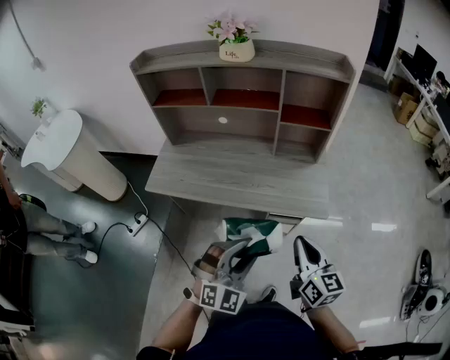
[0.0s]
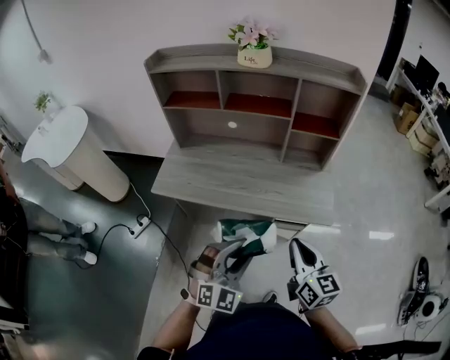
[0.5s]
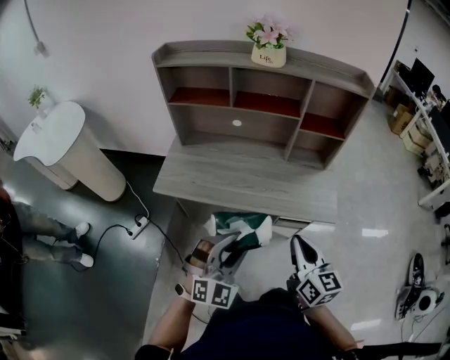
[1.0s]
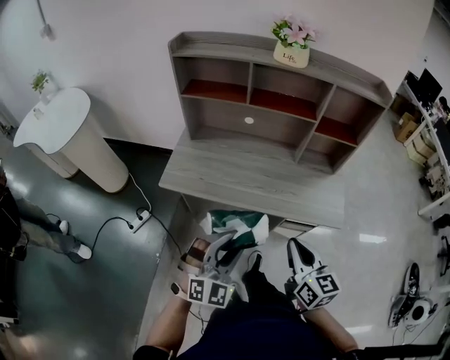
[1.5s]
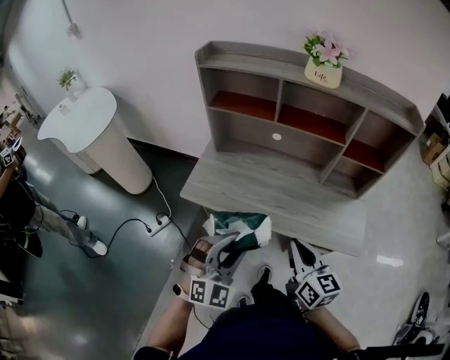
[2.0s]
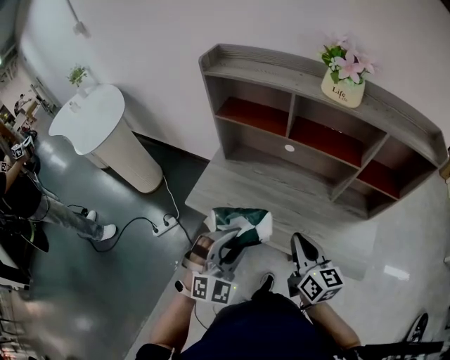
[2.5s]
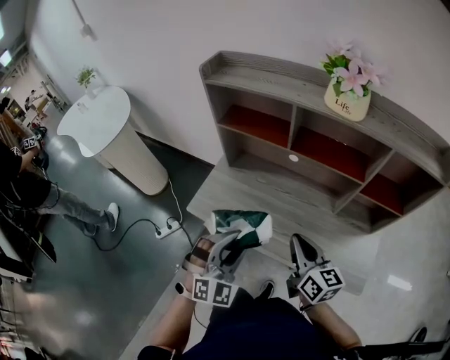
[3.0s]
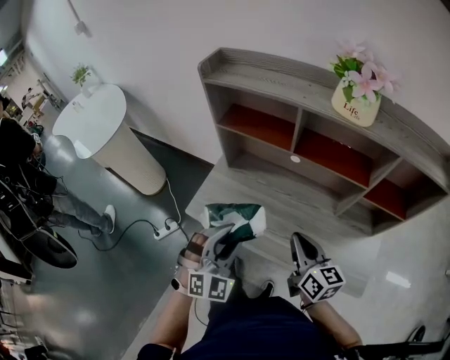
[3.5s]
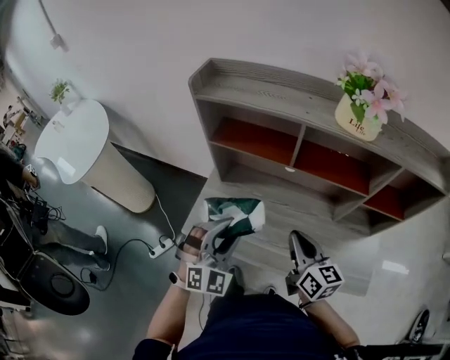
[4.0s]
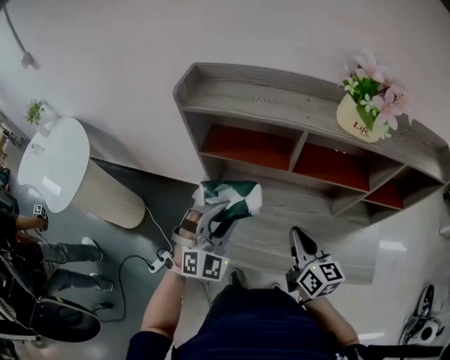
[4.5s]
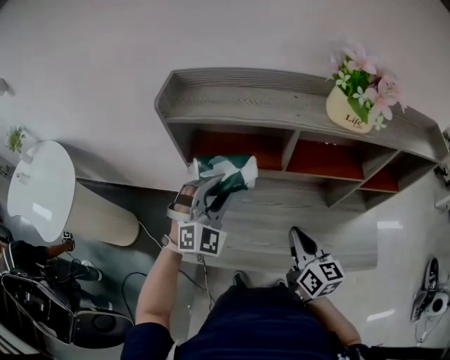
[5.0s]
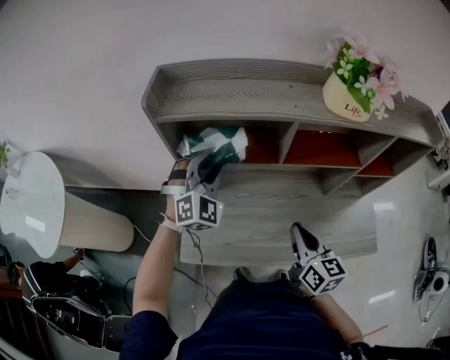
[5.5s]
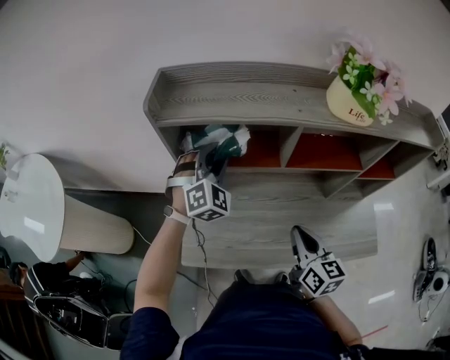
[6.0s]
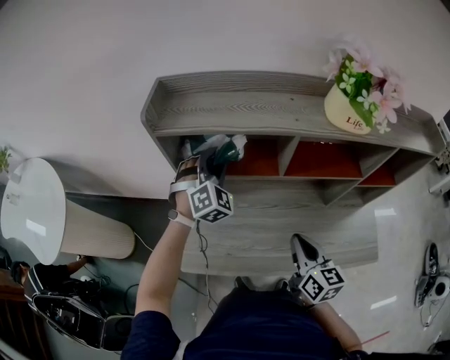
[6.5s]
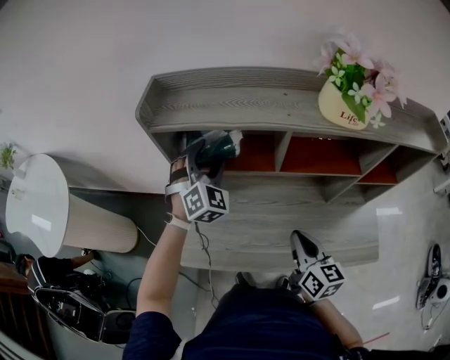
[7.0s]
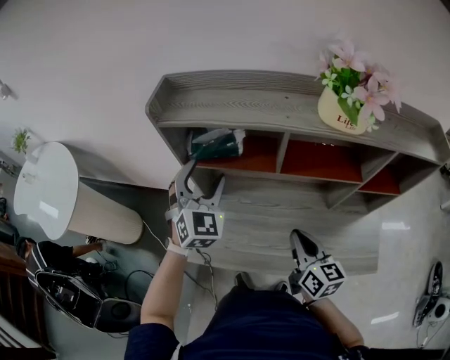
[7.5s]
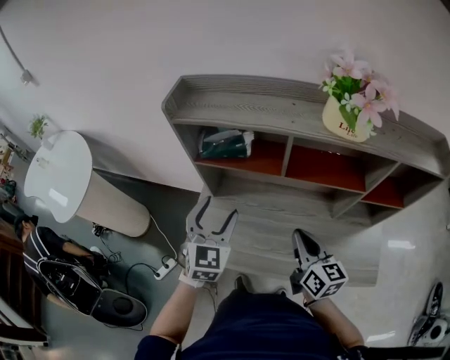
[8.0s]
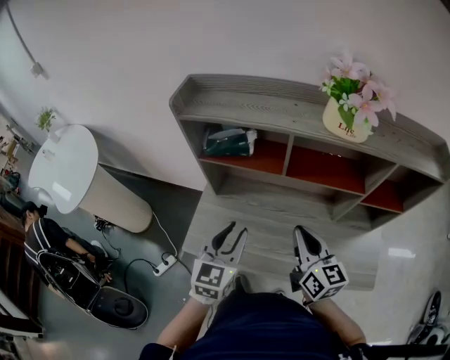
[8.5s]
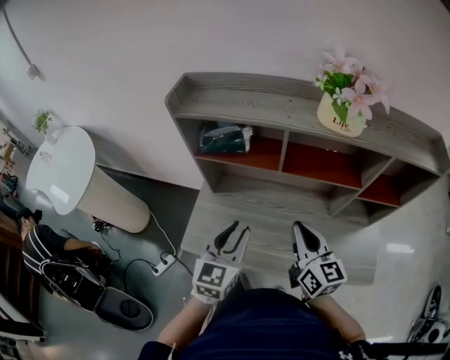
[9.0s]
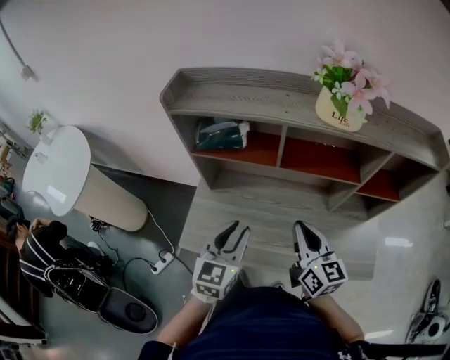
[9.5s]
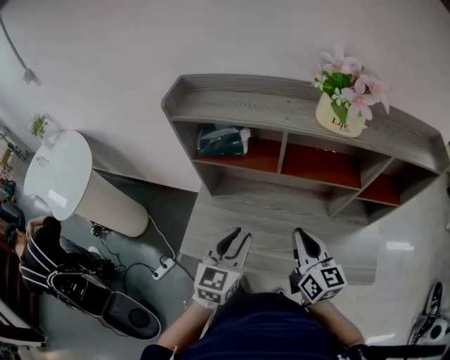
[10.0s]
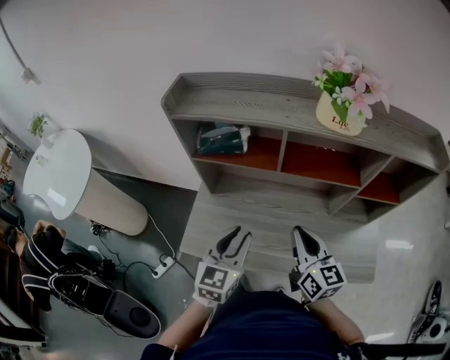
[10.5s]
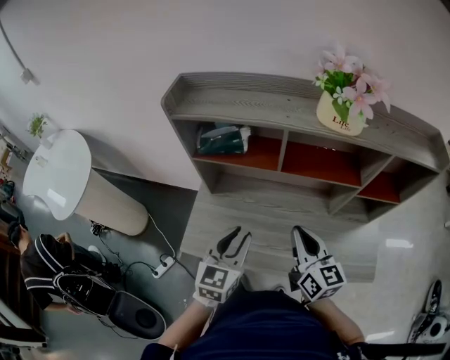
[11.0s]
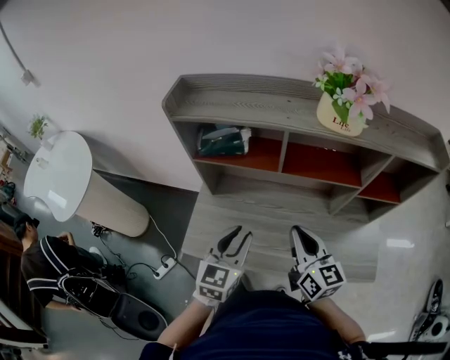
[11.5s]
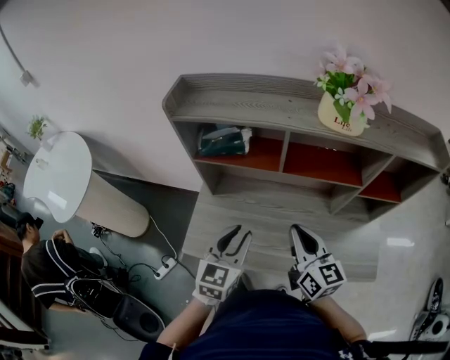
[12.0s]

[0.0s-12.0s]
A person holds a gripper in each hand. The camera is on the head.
0.0s to 2.0s: The right gripper shifts about 25 cm to the left and forward, while the left gripper heads to the left, covering approximately 25 cm.
2.0s to 4.0s: The grippers both shift forward by approximately 25 cm.
4.0s to 6.0s: The right gripper ends up approximately 5 cm from where it was, and rotates approximately 20 degrees; the left gripper travels forward by roughly 30 cm.
6.0s to 8.0s: The left gripper goes approximately 15 cm backward, twists roughly 40 degrees counterclockwise, seen from behind, and opens up.
8.0s to 10.0s: The left gripper shifts approximately 10 cm backward and to the right, turns by approximately 20 degrees, and closes its fingers.
10.0s to 12.0s: The grippers move only a little.

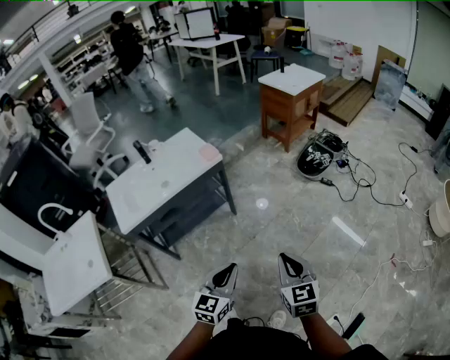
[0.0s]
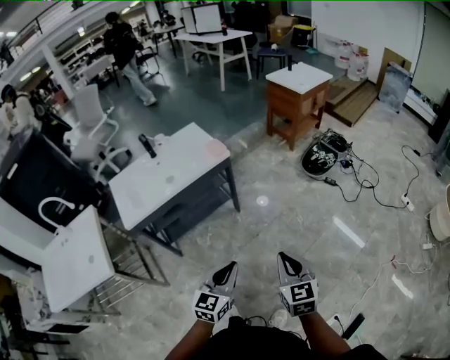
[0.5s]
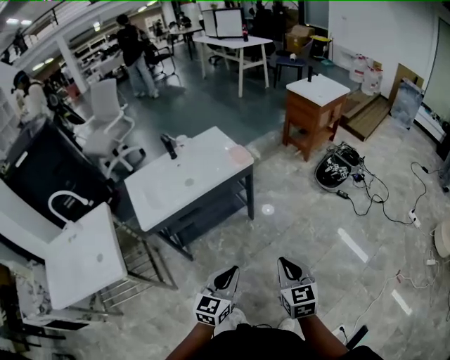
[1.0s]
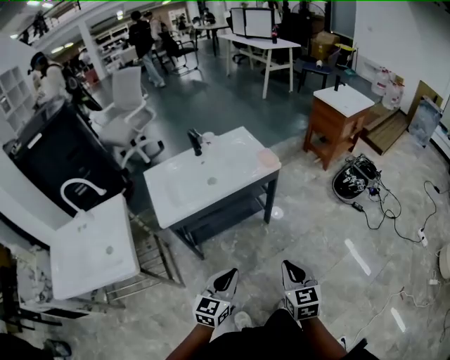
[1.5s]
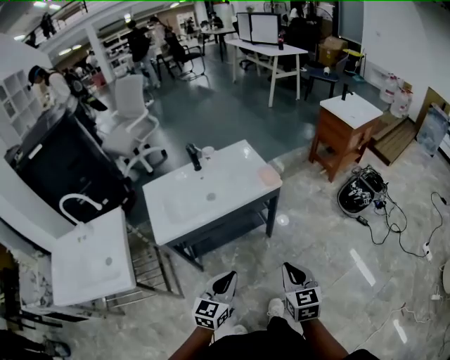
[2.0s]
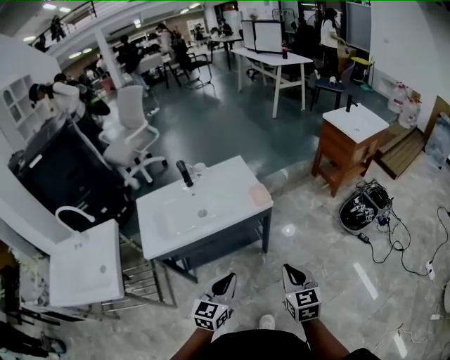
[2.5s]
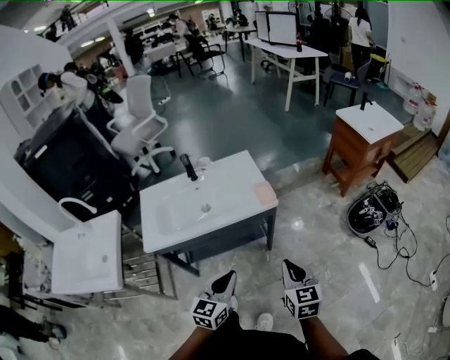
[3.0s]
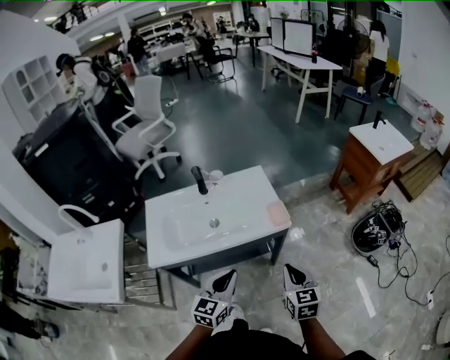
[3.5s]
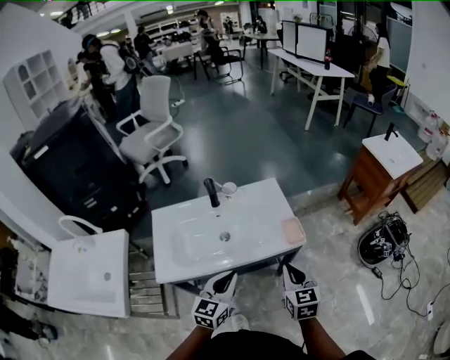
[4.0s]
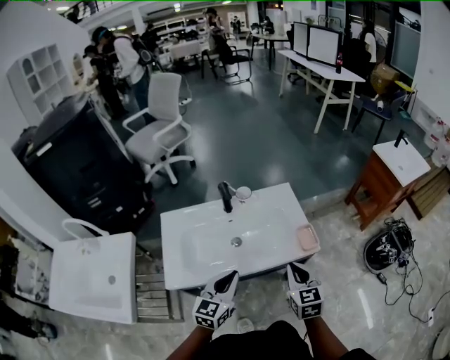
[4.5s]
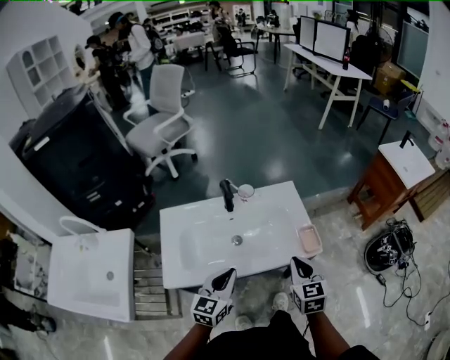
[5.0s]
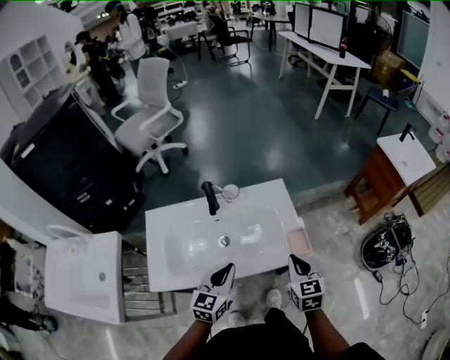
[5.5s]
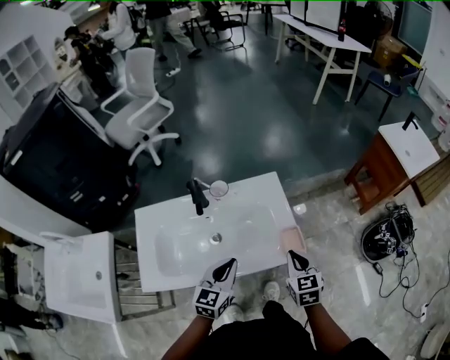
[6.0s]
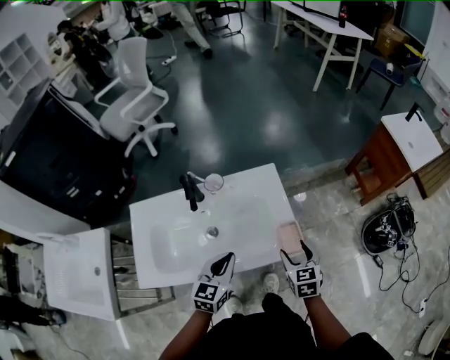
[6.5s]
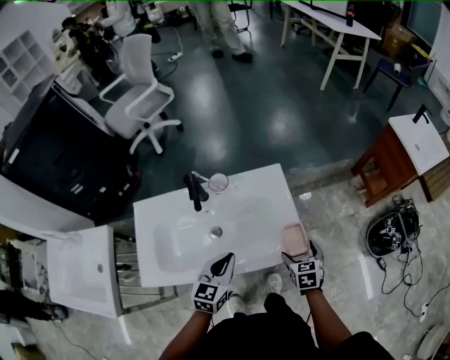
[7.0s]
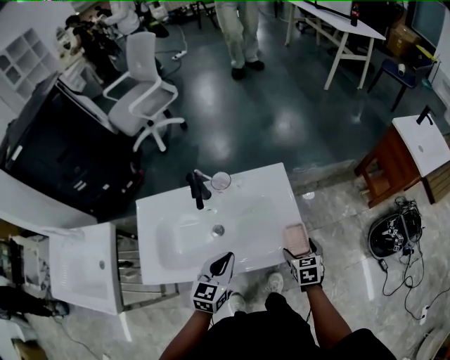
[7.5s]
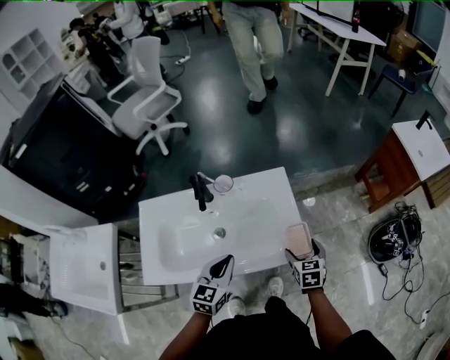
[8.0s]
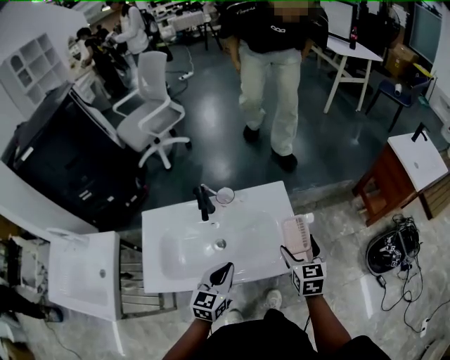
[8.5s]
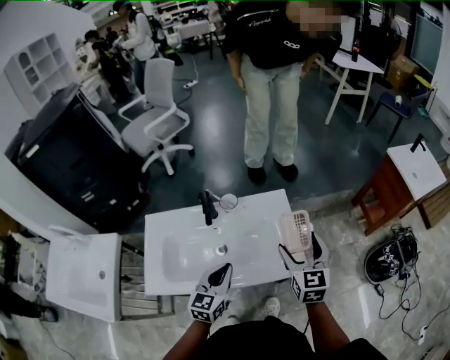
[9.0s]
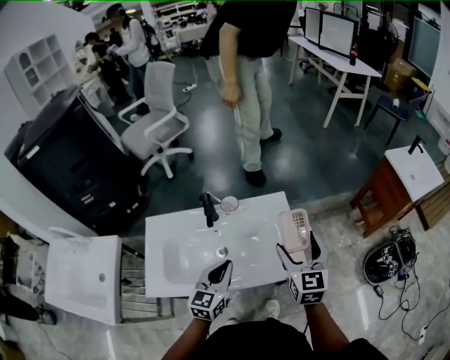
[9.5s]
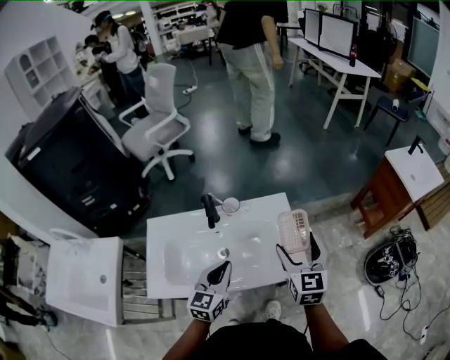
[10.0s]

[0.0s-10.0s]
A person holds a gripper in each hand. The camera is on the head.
0.0s to 2.0s: Both grippers travel together to the left and forward, some 25 cm.
2.0s to 4.0s: The two grippers go roughly 25 cm forward.
4.0s to 6.0s: The left gripper travels forward by about 10 cm. Meanwhile the right gripper shifts approximately 15 cm forward and downward.
6.0s to 8.0s: The right gripper shifts roughly 10 cm downward, and opens.
8.0s to 10.0s: The left gripper is displaced upward by approximately 5 cm. Meanwhile the right gripper goes about 20 cm upward, and tilts its fingers roughly 30 degrees upward.

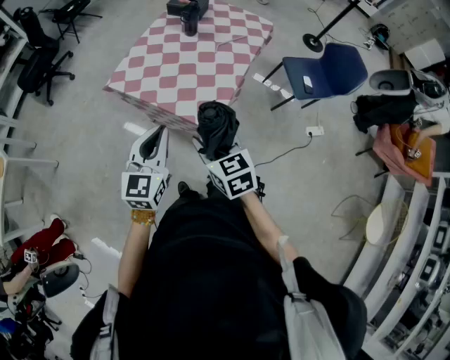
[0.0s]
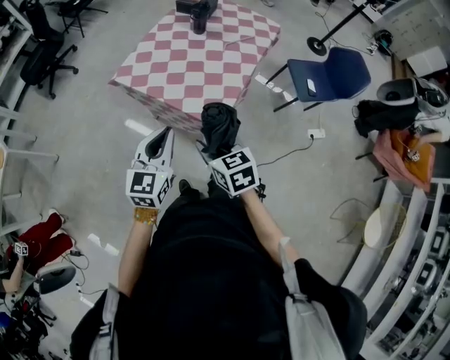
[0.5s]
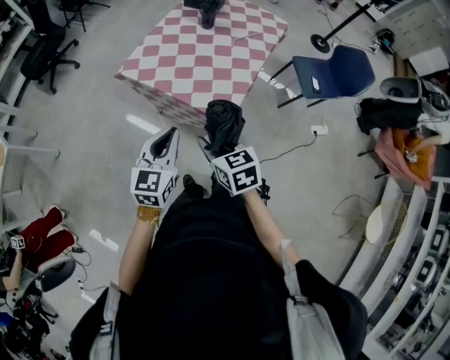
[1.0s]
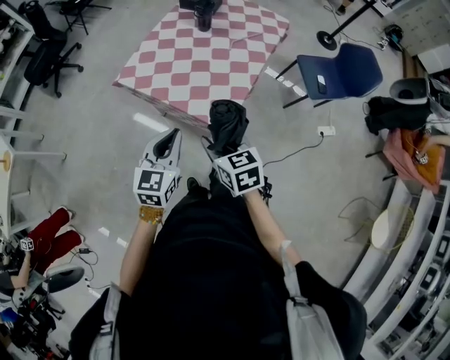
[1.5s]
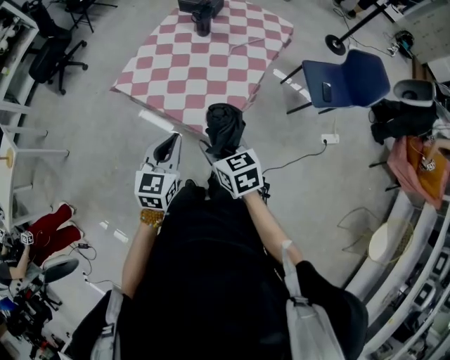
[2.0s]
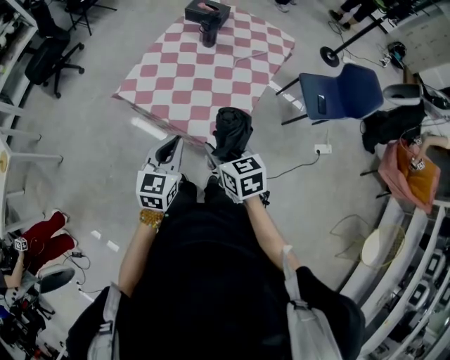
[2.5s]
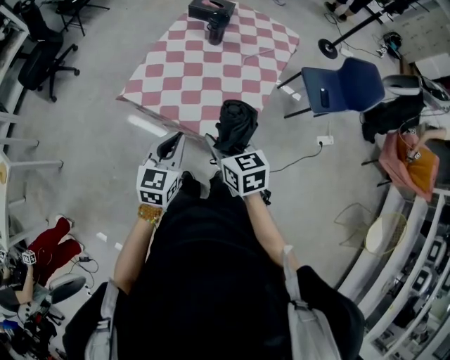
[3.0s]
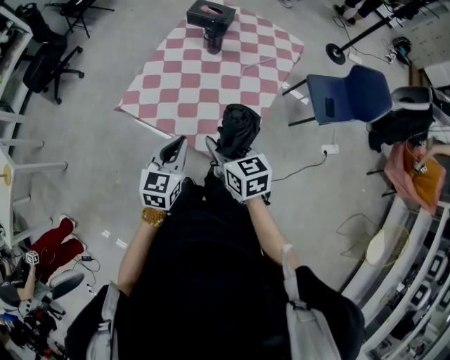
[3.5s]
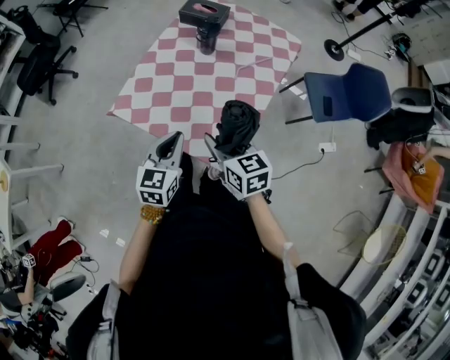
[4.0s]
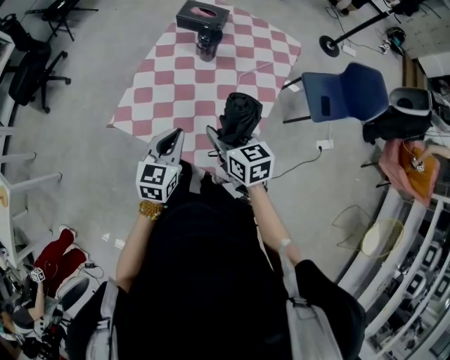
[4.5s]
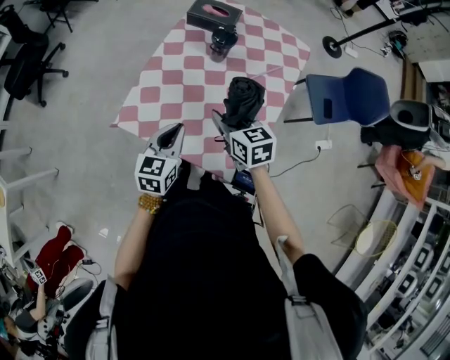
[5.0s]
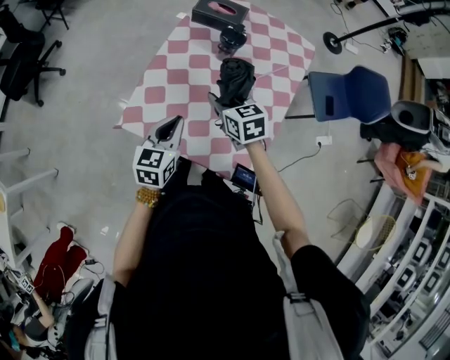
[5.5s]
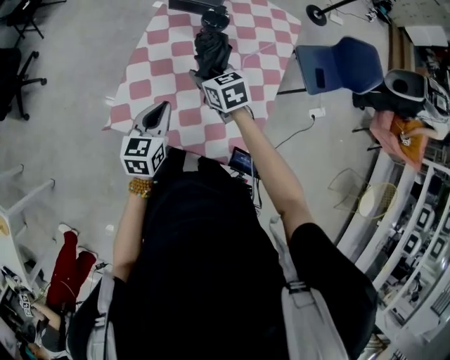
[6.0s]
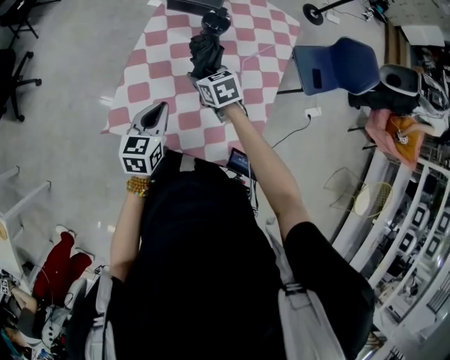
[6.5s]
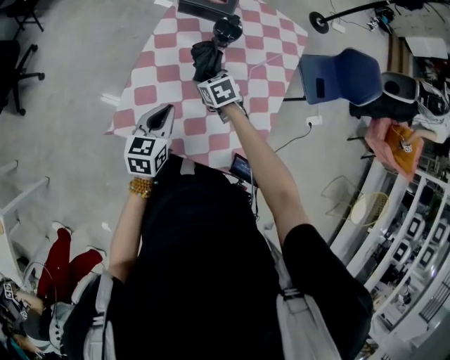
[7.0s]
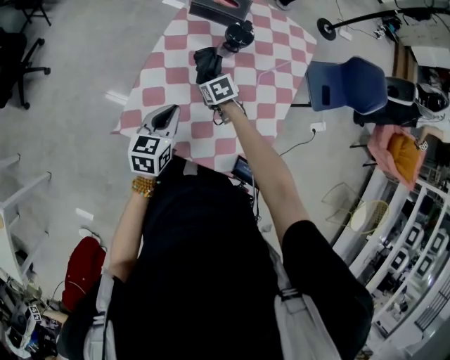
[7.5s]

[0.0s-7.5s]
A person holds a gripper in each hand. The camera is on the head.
0.0s to 2.0s: The right gripper travels forward by some 5 cm. Meanwhile the left gripper moves downward and forward, approximately 10 cm.
2.0s to 4.0s: Both grippers travel together forward, about 15 cm.
4.0s to 5.5s: The left gripper heads forward and to the left, covering roughly 20 cm. The right gripper heads forward, covering roughly 25 cm.
5.5s to 7.5s: The left gripper shifts some 5 cm forward. The right gripper is displaced downward and forward by approximately 20 cm, and swivels about 30 degrees.
